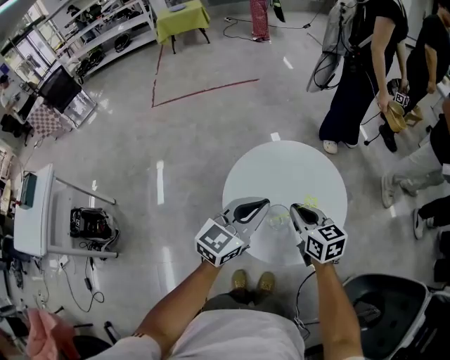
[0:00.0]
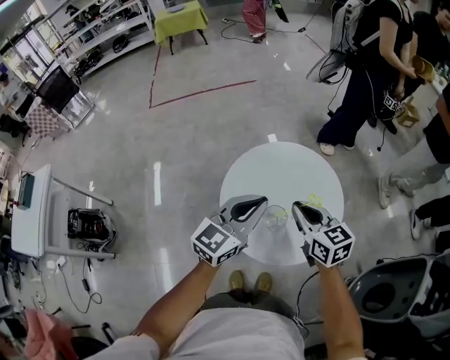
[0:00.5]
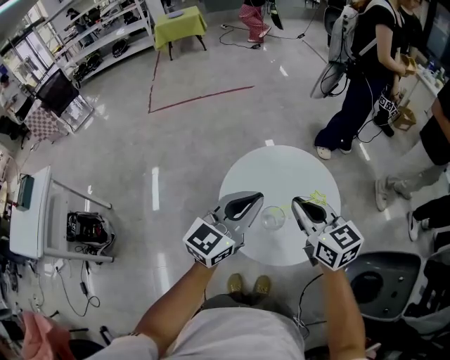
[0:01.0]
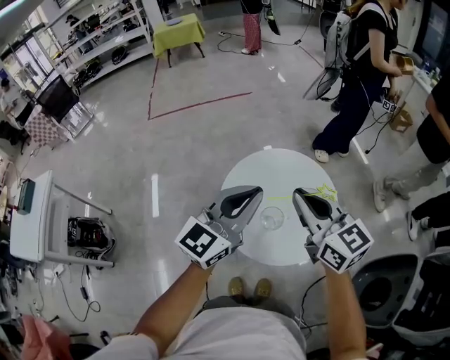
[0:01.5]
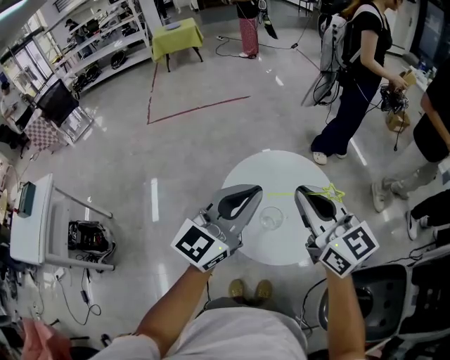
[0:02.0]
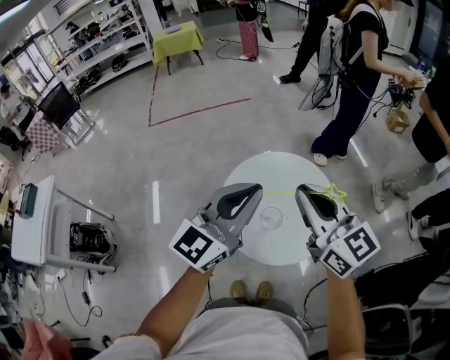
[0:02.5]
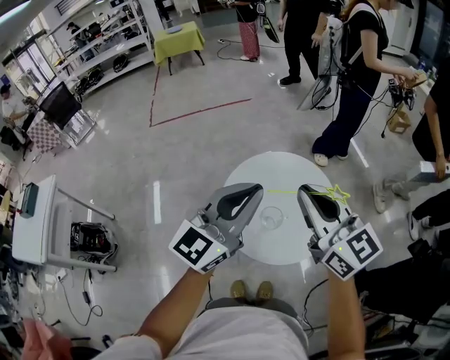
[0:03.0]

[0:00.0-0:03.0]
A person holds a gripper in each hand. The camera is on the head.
0:00.0 to 0:01.5: The right gripper heads upward, covering some 20 cm, and turns by approximately 20 degrees. The left gripper travels upward by some 10 cm.
0:01.5 to 0:03.0: Both grippers move upward, roughly 5 cm.

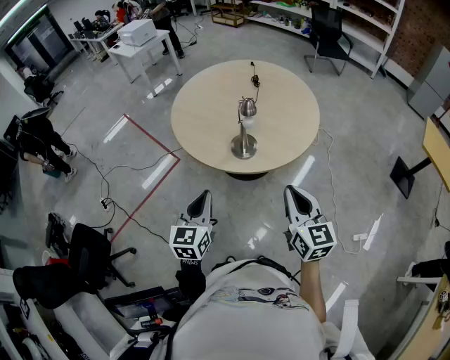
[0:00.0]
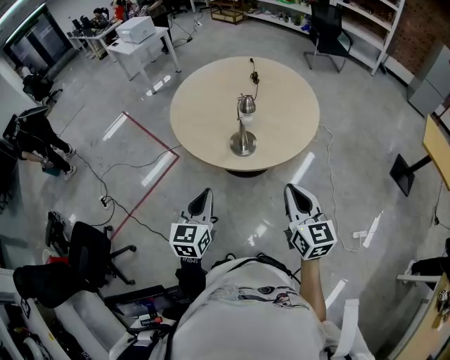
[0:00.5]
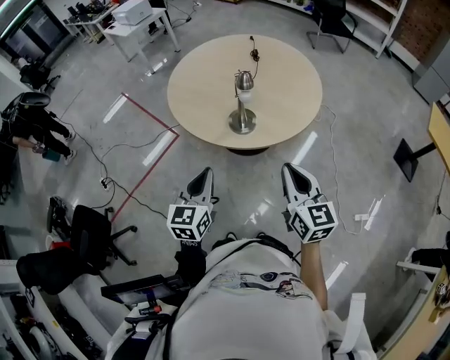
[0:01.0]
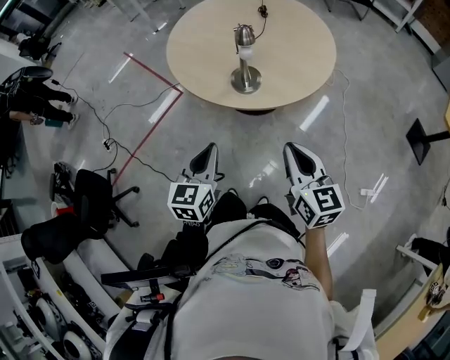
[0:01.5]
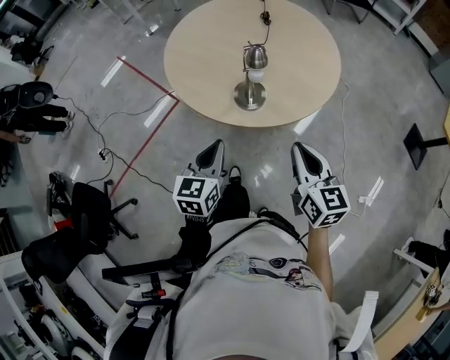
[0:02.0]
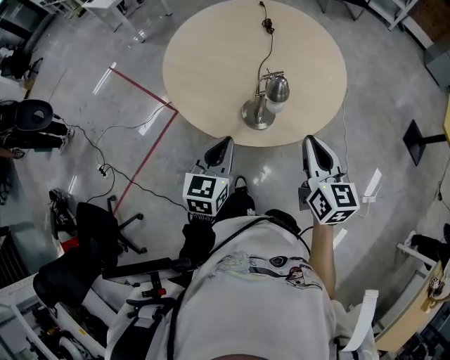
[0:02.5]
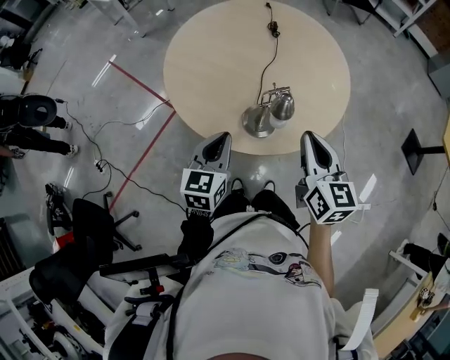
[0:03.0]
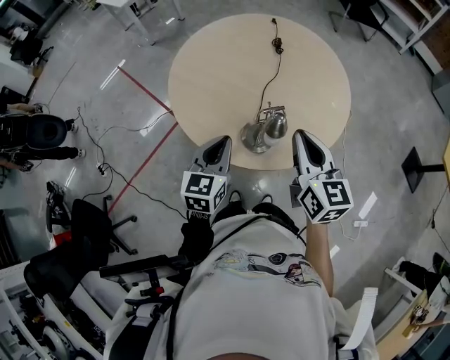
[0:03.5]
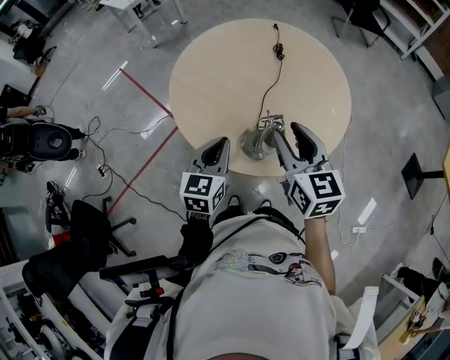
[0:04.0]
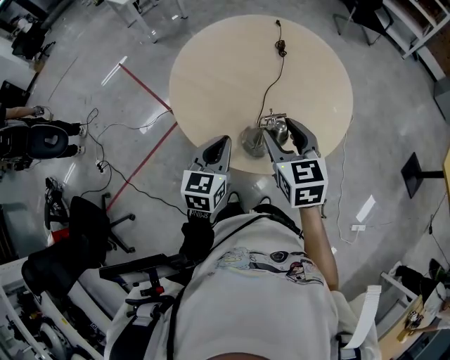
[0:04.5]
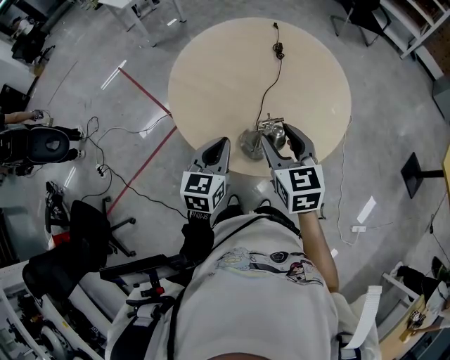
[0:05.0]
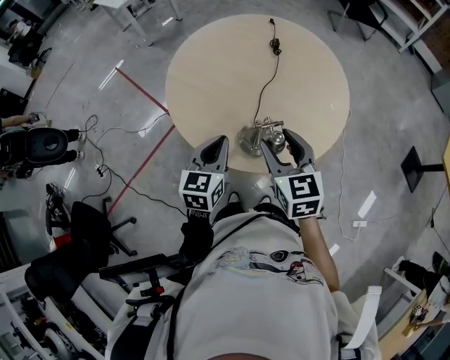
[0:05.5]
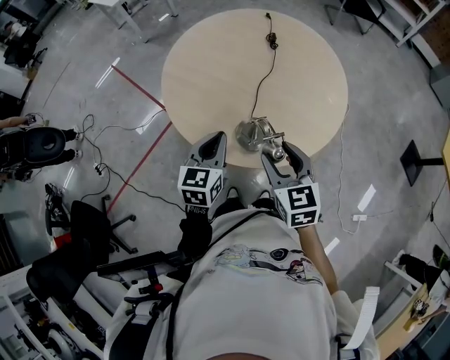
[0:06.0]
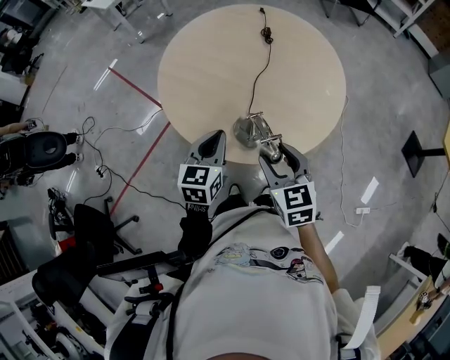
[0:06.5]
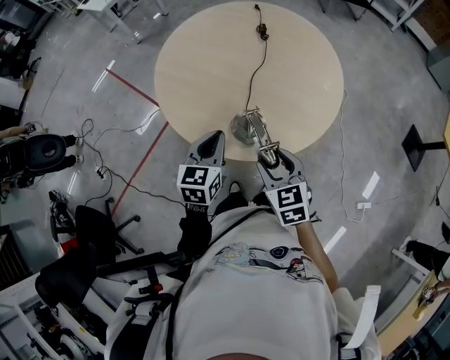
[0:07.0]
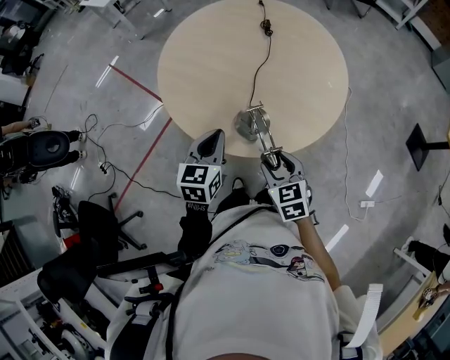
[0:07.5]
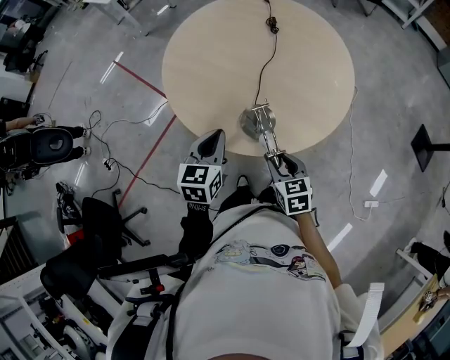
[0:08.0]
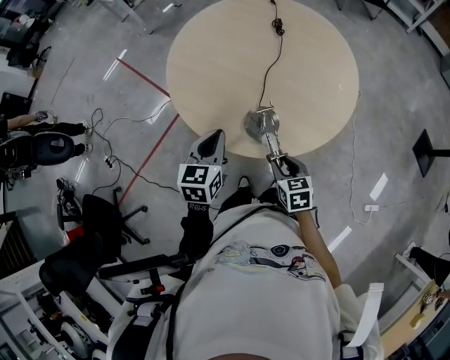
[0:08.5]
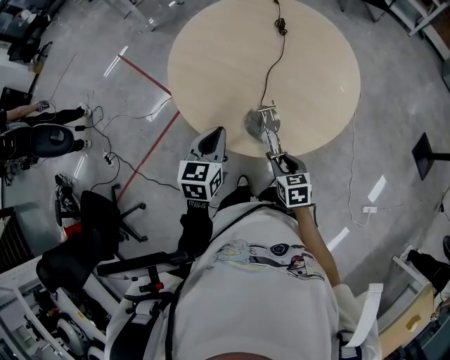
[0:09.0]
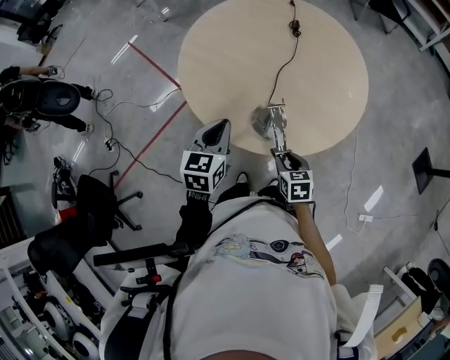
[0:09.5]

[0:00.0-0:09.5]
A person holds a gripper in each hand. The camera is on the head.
0:00.0 to 0:02.0: The two grippers go roughly 10 cm forward and downward.
0:02.0 to 0:04.0: Both grippers travel together forward, roughly 20 cm. The right gripper opens its fingers.
0:04.0 to 0:05.5: The right gripper moves roughly 5 cm.
0:05.5 to 0:07.5: The right gripper is displaced downward and backward by some 15 cm.
0:07.5 to 0:09.5: The right gripper is displaced downward by approximately 10 cm, and closes.

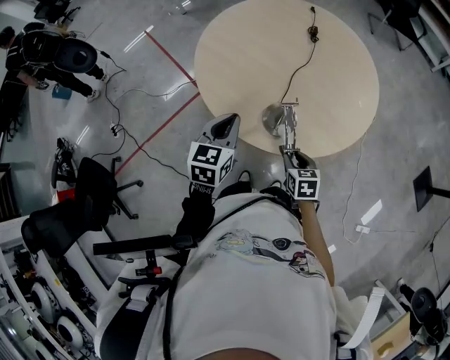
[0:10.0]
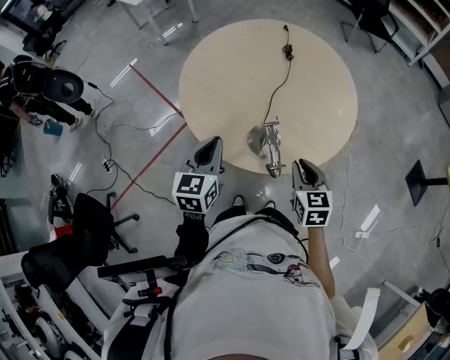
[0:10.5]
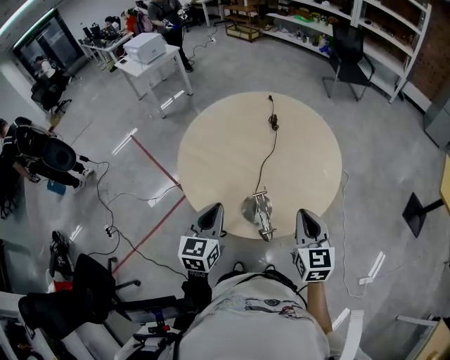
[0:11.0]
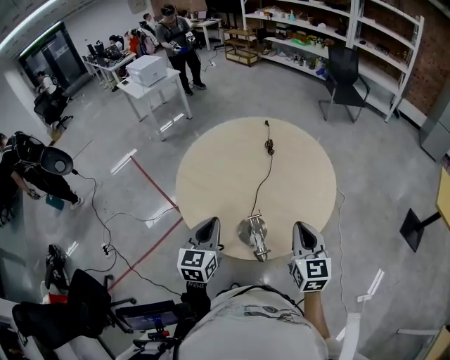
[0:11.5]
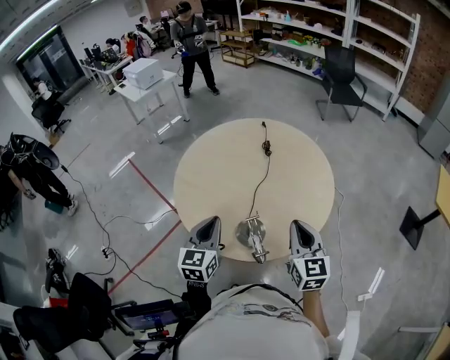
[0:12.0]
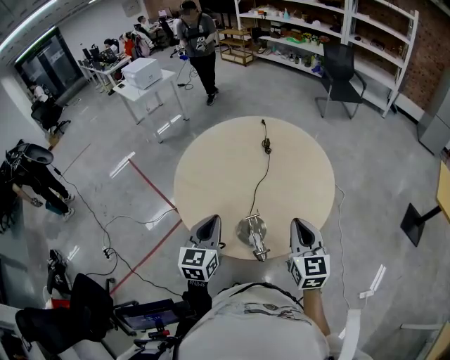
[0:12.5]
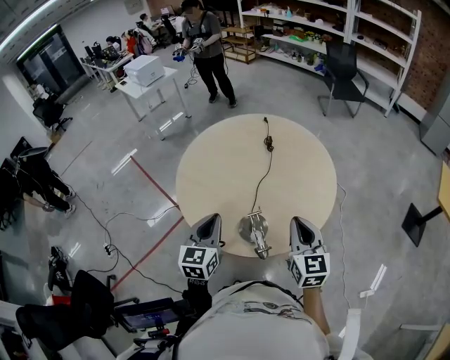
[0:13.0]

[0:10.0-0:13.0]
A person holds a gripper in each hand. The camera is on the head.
0:10.0 to 0:11.5: The left gripper is displaced upward by about 10 cm. Meanwhile the right gripper moves upward, about 25 cm, tips its fingers upward by roughly 40 degrees, and closes its fingers.
0:11.5 to 0:13.0: The grippers stay close to where they were, moving slightly.

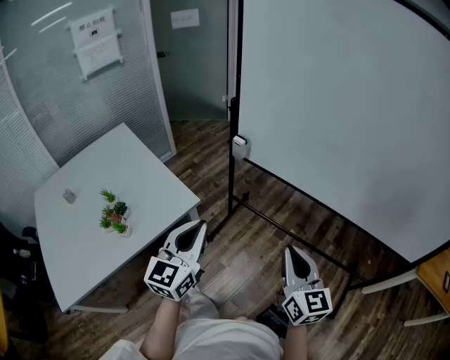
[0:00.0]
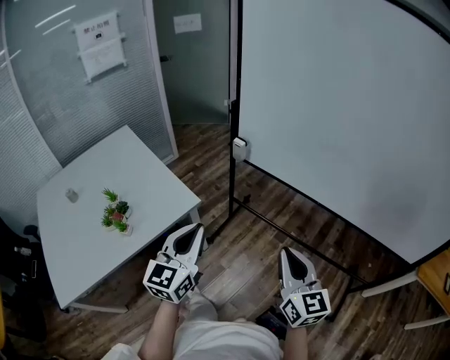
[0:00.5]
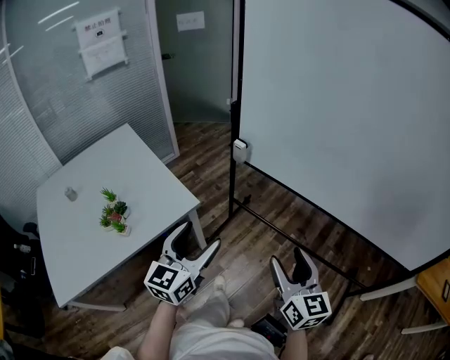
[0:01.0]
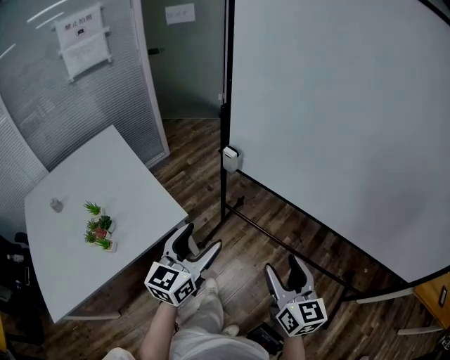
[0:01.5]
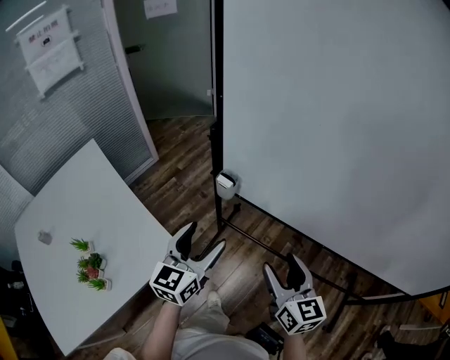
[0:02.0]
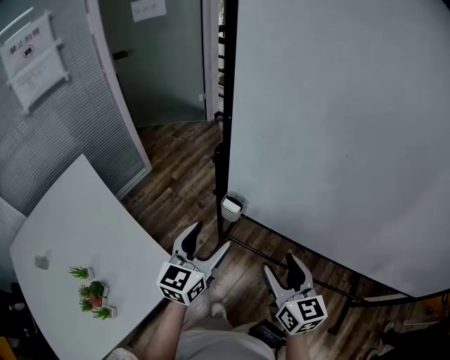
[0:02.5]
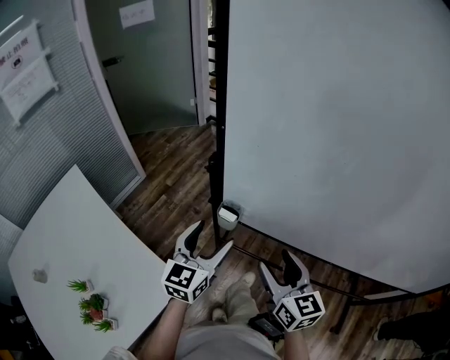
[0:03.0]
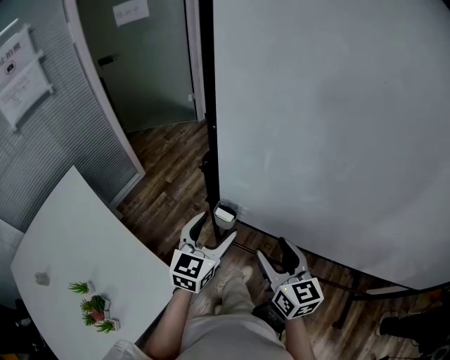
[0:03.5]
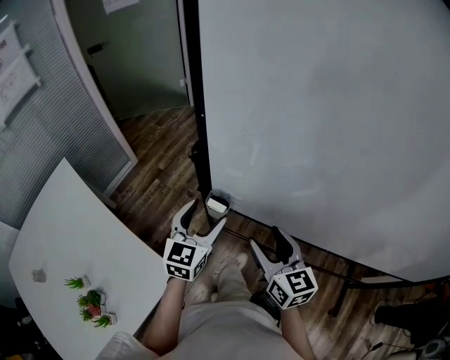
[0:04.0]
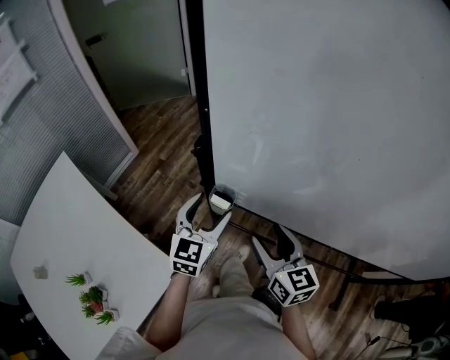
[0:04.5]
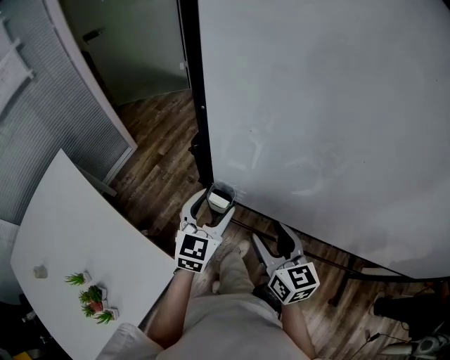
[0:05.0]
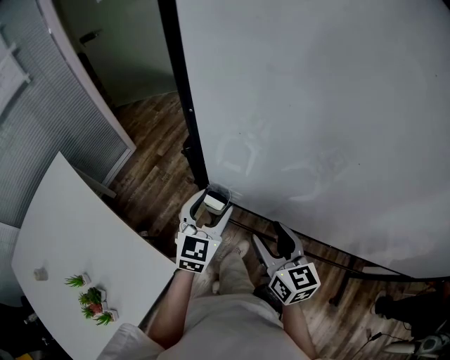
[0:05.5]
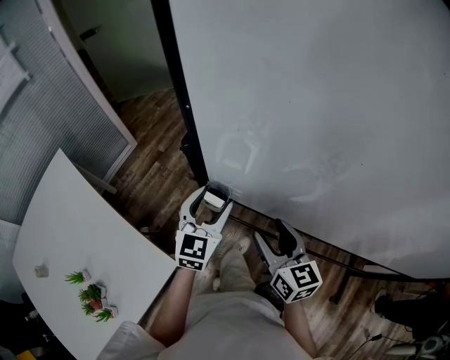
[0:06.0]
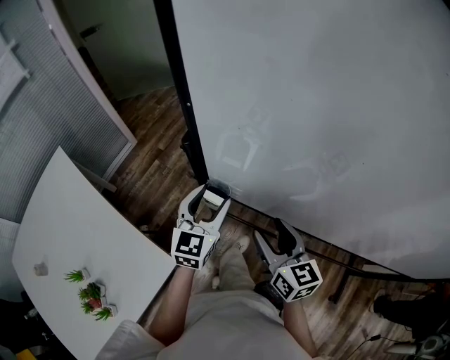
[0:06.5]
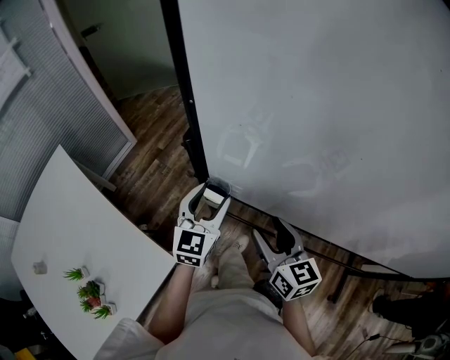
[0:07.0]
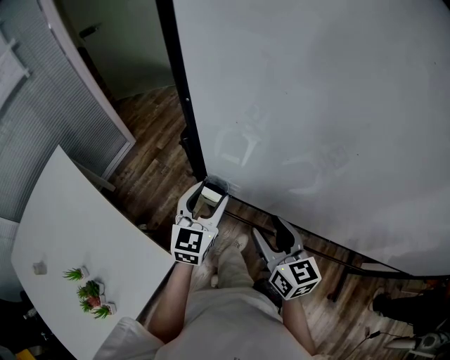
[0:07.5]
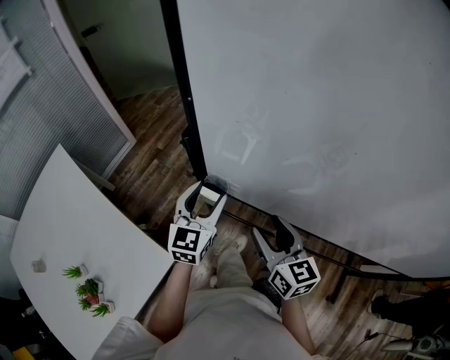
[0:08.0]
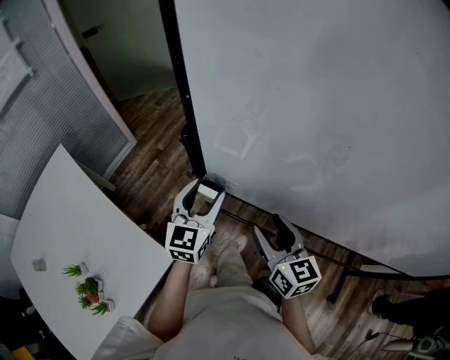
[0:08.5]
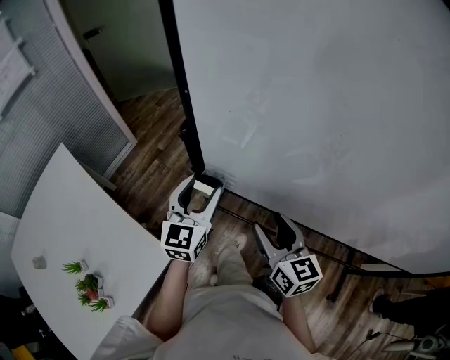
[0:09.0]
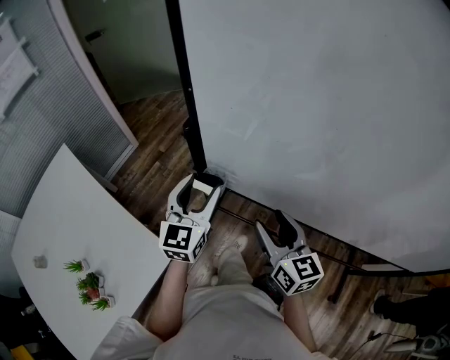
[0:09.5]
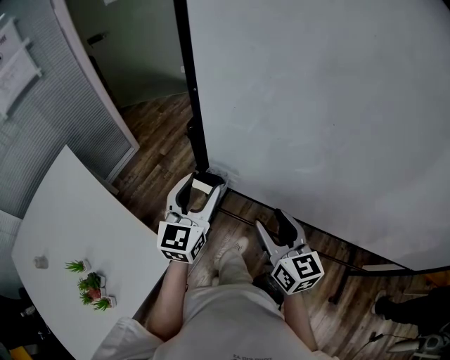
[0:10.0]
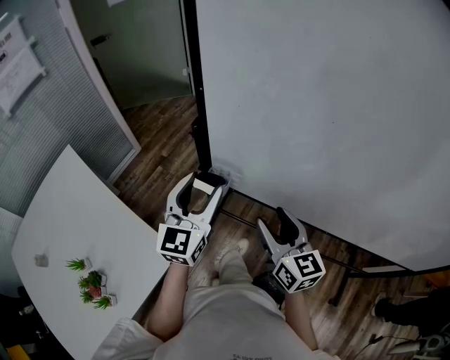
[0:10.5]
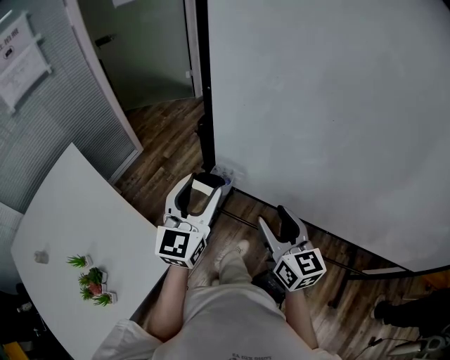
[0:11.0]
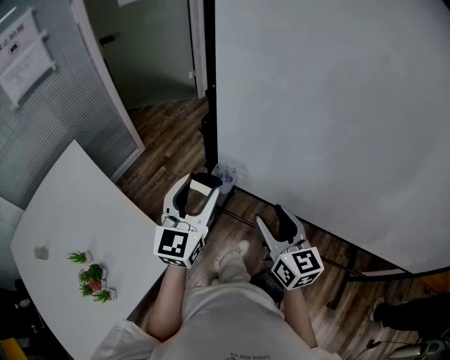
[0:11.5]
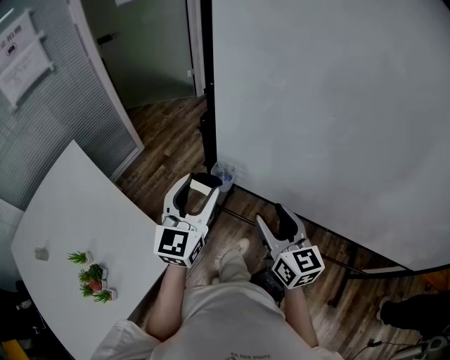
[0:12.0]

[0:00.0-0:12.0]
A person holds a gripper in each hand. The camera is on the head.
0:00.0 to 0:02.0: Both grippers move forward, some 25 cm. The right gripper opens its fingers. Meanwhile the left gripper opens up.
0:02.0 to 0:04.0: Both grippers travel together forward, approximately 15 cm.
0:04.0 to 0:08.0: The grippers move only a little.
0:08.0 to 0:10.0: The left gripper shifts about 5 cm upward.
0:10.0 to 0:12.0: The left gripper moves about 5 cm.
